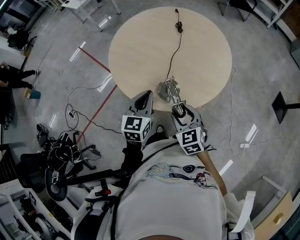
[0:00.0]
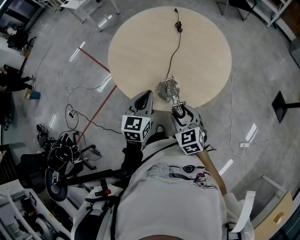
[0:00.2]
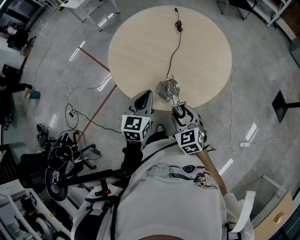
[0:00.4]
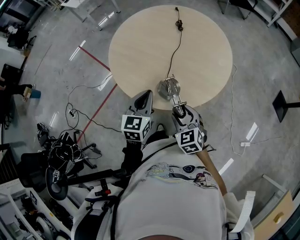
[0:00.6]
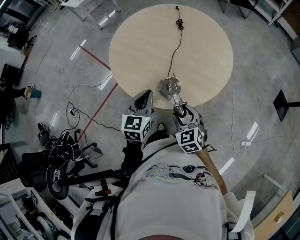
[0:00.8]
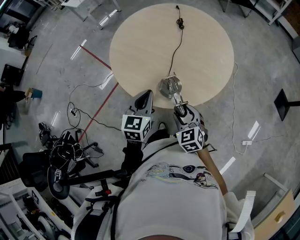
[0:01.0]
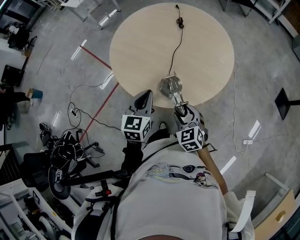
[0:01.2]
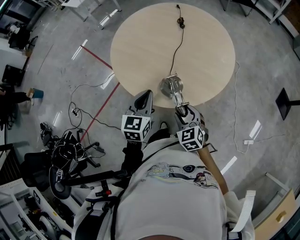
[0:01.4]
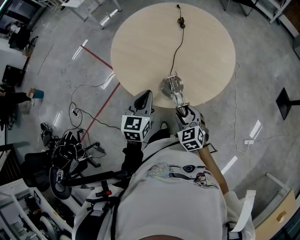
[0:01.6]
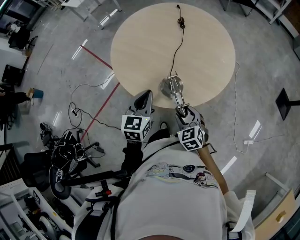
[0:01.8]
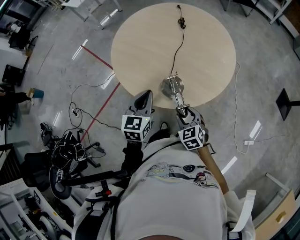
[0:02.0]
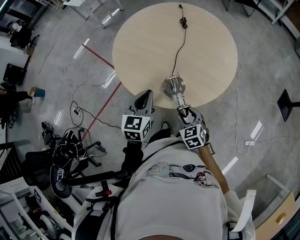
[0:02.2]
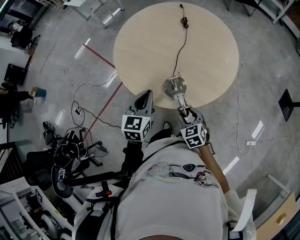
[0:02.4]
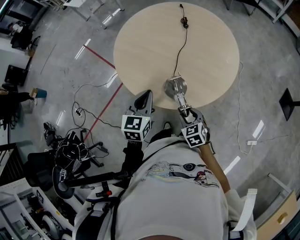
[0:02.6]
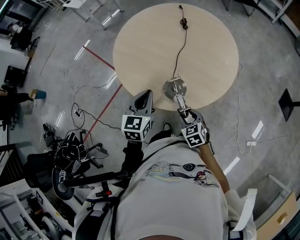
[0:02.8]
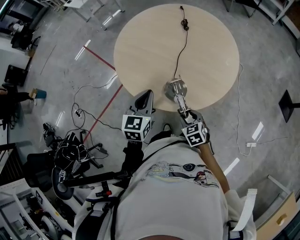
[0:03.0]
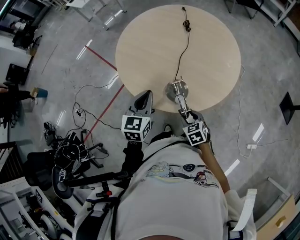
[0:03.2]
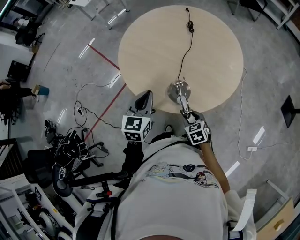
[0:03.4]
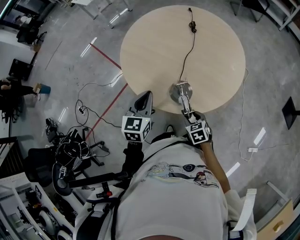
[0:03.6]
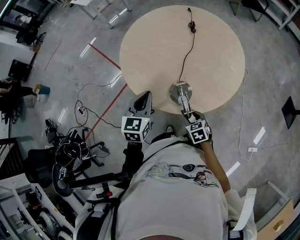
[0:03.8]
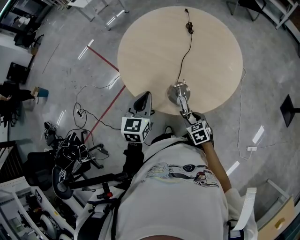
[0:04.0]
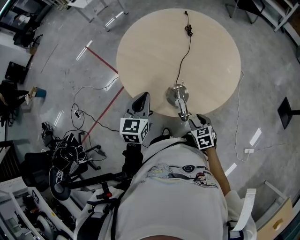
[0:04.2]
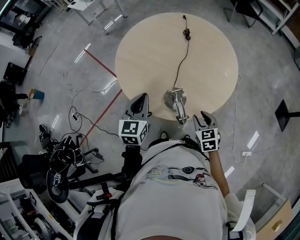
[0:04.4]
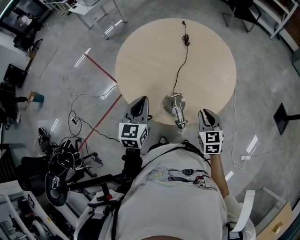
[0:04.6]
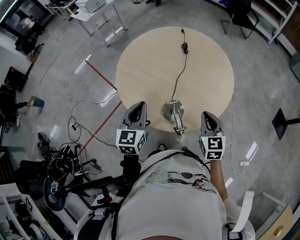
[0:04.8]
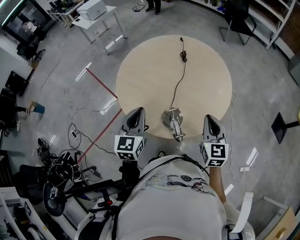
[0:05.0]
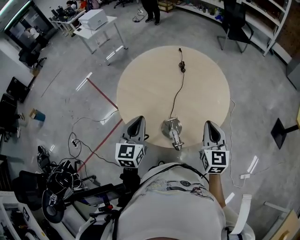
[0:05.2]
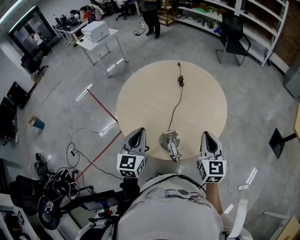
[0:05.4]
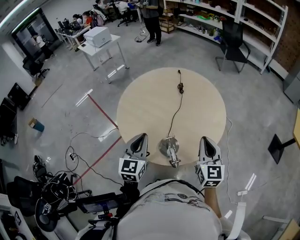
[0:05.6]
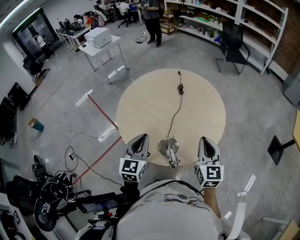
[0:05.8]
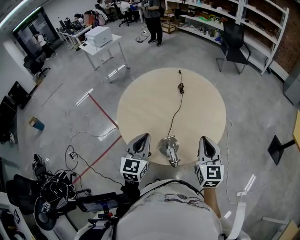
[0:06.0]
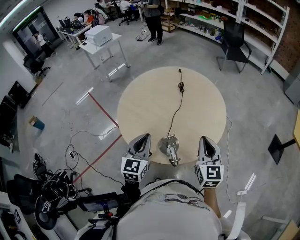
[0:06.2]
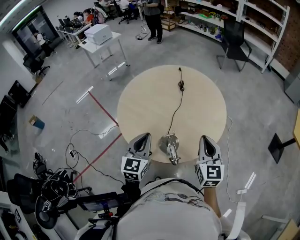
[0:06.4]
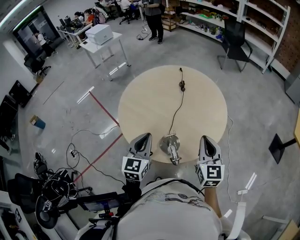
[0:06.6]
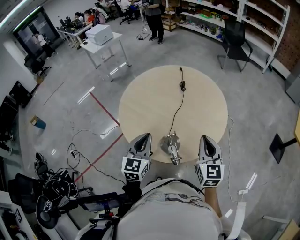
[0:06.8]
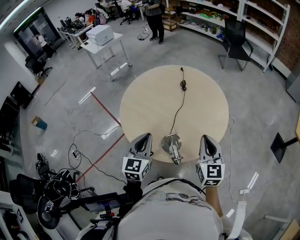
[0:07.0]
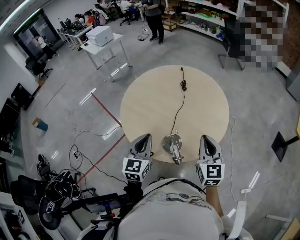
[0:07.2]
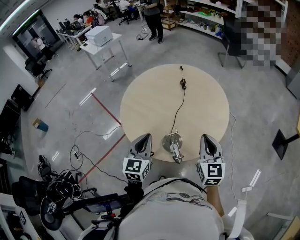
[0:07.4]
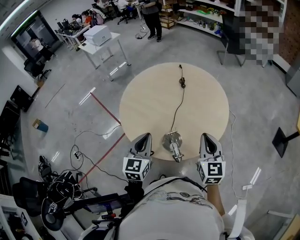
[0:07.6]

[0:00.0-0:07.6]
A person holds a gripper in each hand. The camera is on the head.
0:00.0 to 0:01.6: The right gripper shifts roughly 5 cm downward.
0:01.6 to 0:03.0: The right gripper goes some 5 cm downward.
0:03.0 to 0:04.6: The right gripper shifts about 15 cm upward, to the right and forward, rotates roughly 20 degrees, and closes its fingers.
0:04.6 to 0:06.0: The right gripper goes some 15 cm upward, and swivels some 20 degrees, while the left gripper shifts roughly 5 cm upward.
0:06.0 to 0:07.6: The grippers move only a little.

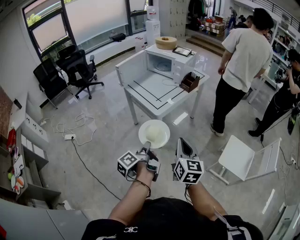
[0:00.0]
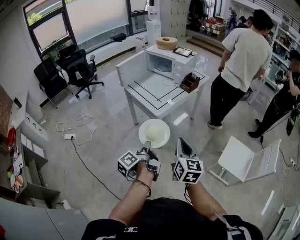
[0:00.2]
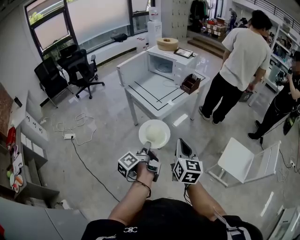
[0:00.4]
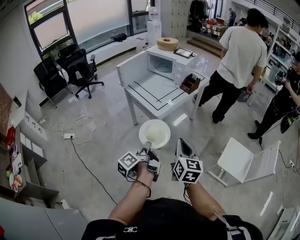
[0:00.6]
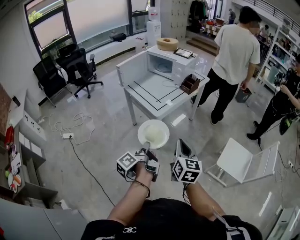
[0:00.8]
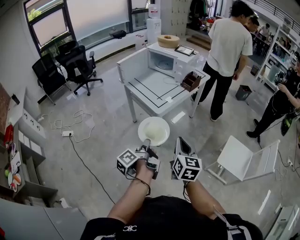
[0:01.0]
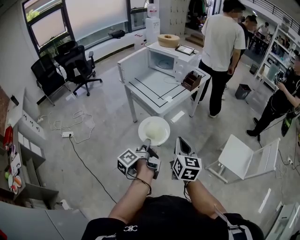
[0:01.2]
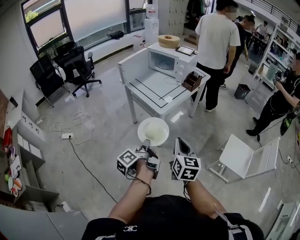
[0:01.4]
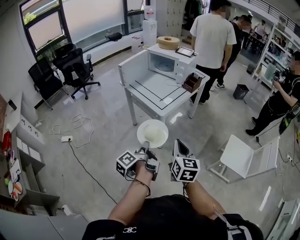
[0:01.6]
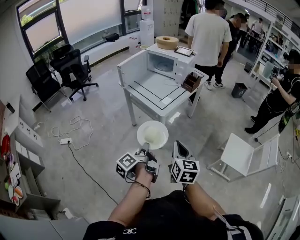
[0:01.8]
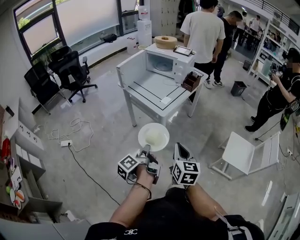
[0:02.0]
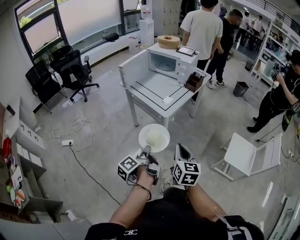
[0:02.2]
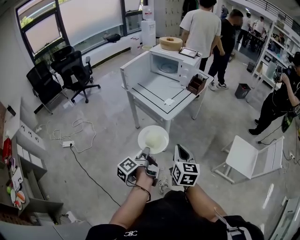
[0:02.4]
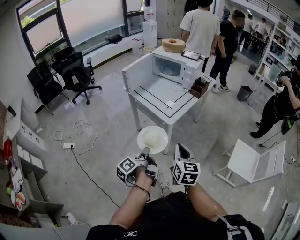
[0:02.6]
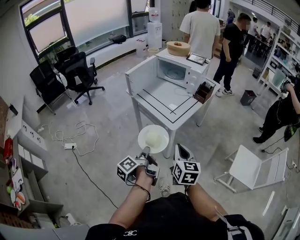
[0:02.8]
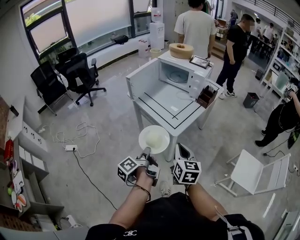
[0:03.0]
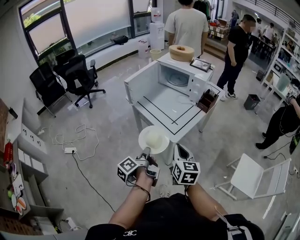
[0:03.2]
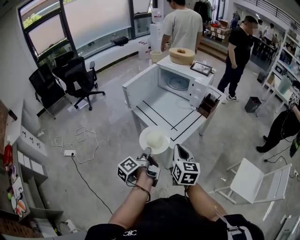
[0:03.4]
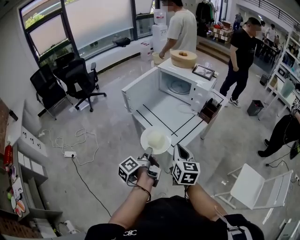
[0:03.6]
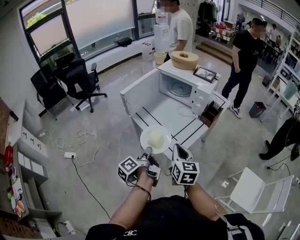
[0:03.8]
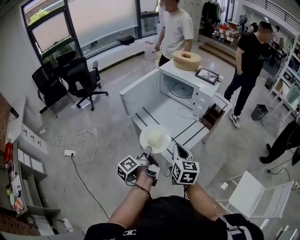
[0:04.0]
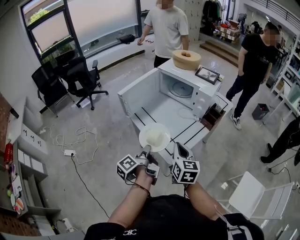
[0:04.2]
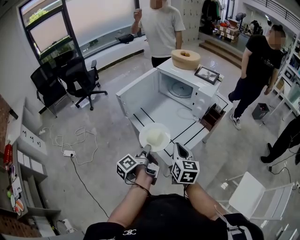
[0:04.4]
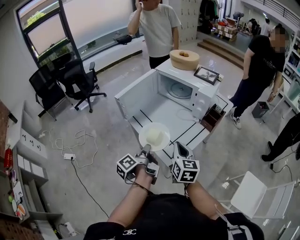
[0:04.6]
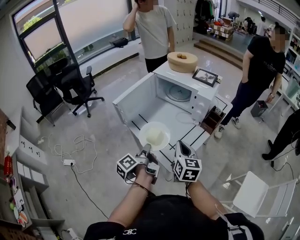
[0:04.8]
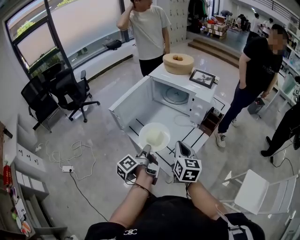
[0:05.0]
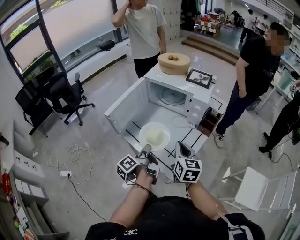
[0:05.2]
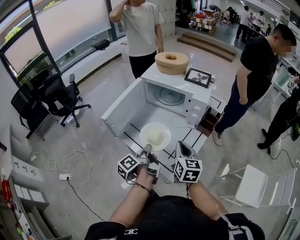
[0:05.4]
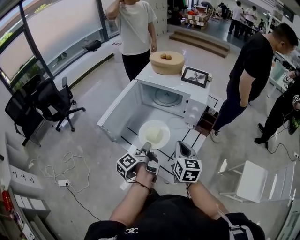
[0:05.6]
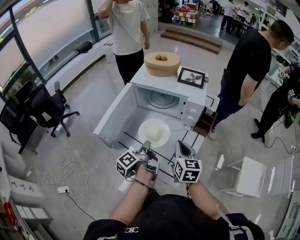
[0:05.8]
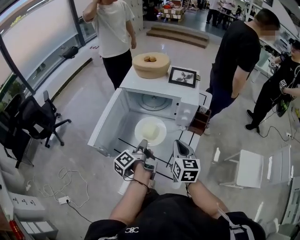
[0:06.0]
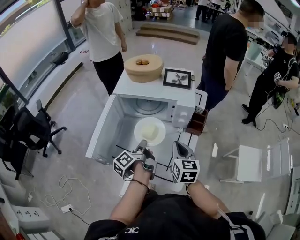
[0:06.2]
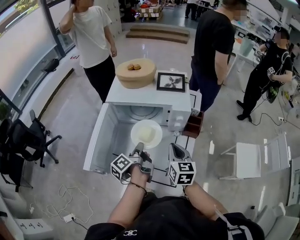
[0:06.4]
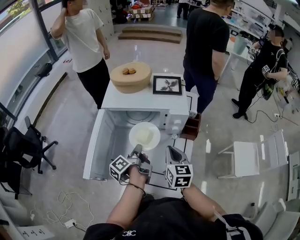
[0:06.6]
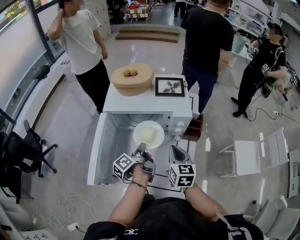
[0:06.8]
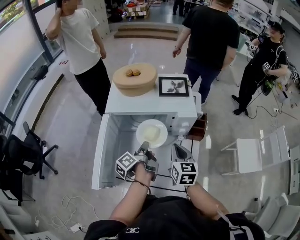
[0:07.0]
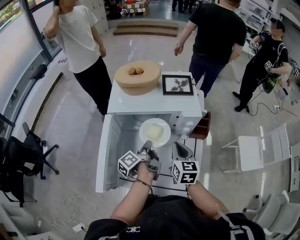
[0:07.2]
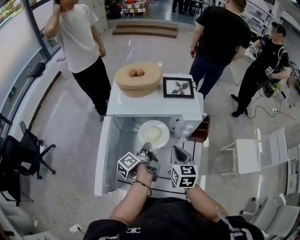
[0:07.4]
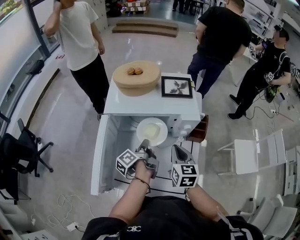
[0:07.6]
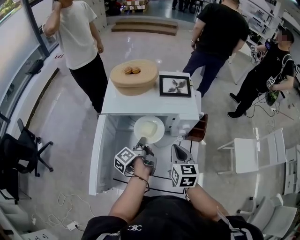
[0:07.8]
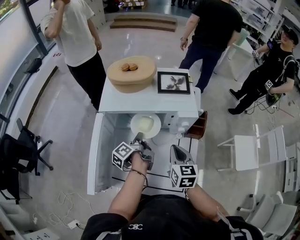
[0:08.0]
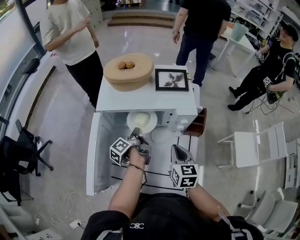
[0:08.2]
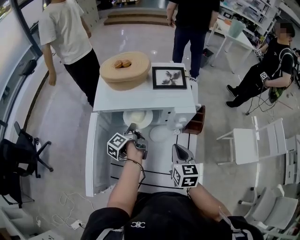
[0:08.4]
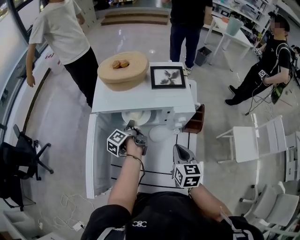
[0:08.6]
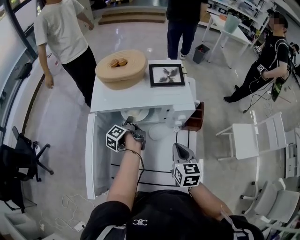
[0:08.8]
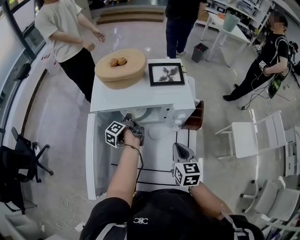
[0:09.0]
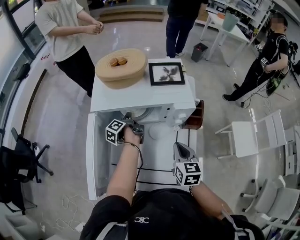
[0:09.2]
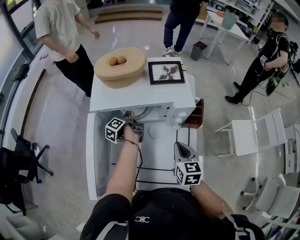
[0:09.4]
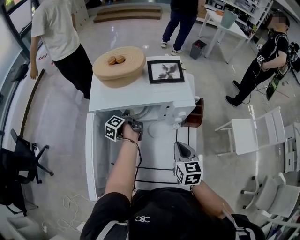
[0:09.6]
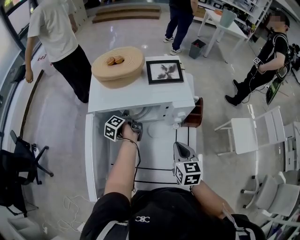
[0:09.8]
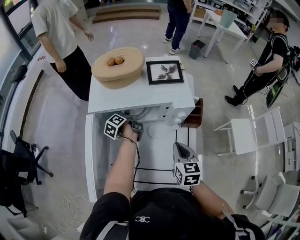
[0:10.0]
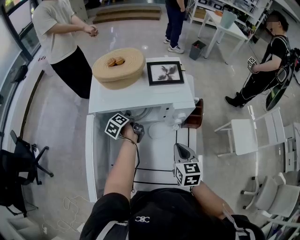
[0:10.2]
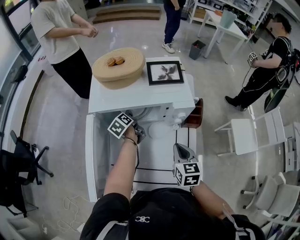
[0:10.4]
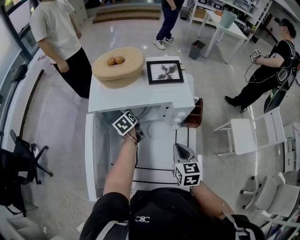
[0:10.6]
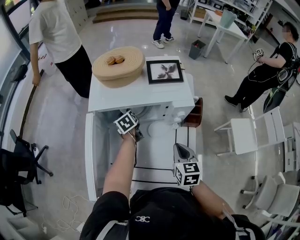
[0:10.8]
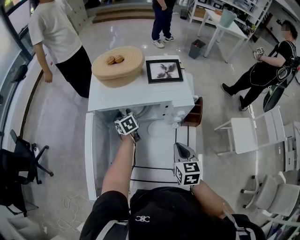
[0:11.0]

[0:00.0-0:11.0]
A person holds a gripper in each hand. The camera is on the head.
0:00.0 to 0:01.6: The right gripper shifts by some 10 cm.
0:01.6 to 0:03.2: The right gripper changes place by roughly 20 cm.
0:03.2 to 0:04.8: The right gripper shifts by some 20 cm.
0:04.8 to 0:06.2: The right gripper changes place by roughly 15 cm, and turns by approximately 20 degrees.
0:06.2 to 0:07.8: The right gripper shifts by about 10 cm.

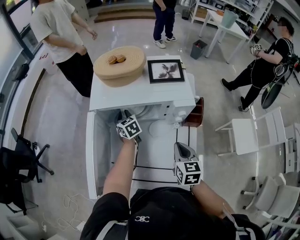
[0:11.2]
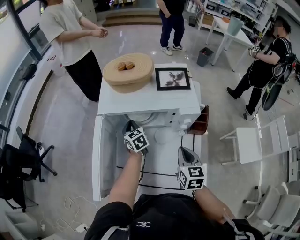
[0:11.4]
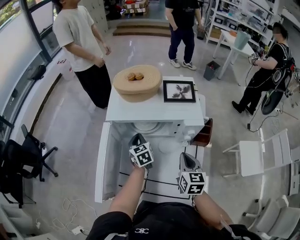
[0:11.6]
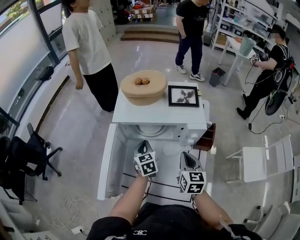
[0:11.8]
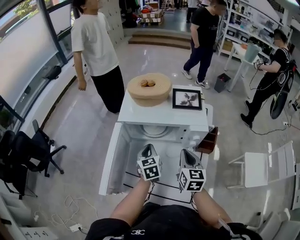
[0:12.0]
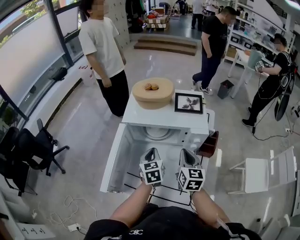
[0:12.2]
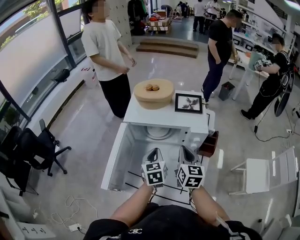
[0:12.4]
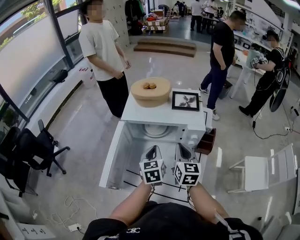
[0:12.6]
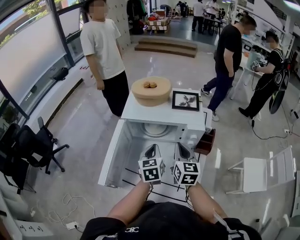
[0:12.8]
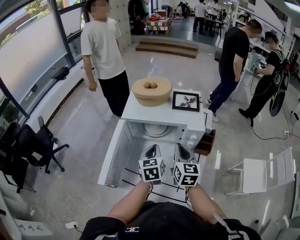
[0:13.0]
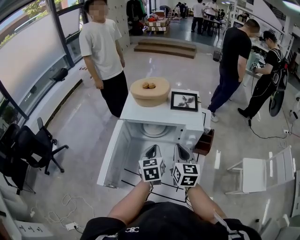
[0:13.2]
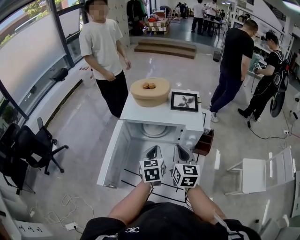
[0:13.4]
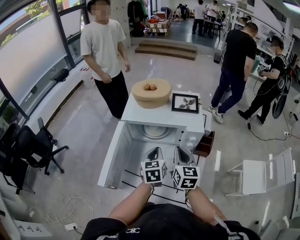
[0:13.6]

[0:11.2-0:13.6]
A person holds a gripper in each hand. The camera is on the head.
0:11.2 to 0:12.4: The right gripper is displaced upward by roughly 10 cm.

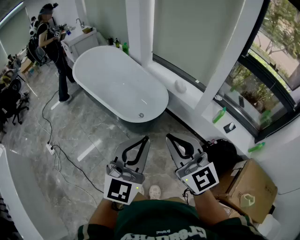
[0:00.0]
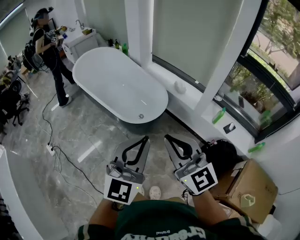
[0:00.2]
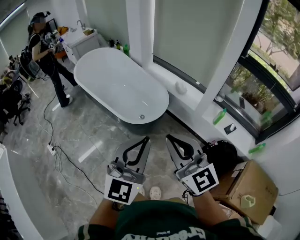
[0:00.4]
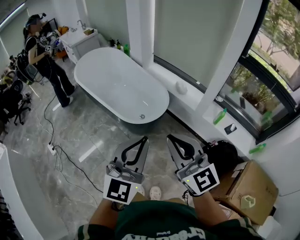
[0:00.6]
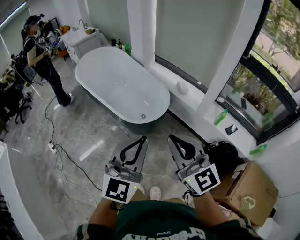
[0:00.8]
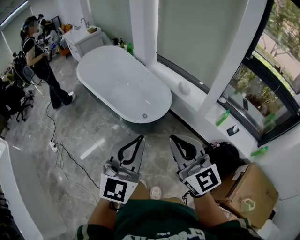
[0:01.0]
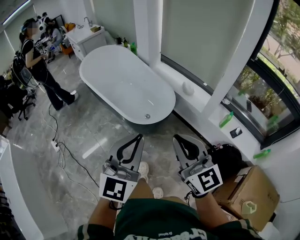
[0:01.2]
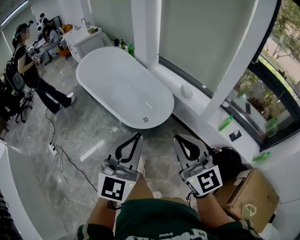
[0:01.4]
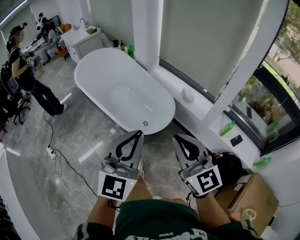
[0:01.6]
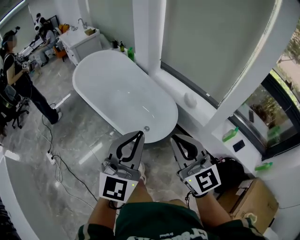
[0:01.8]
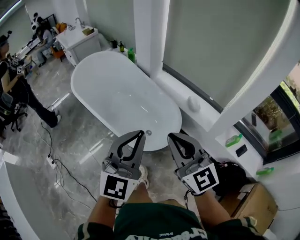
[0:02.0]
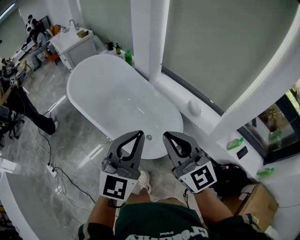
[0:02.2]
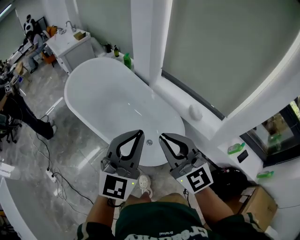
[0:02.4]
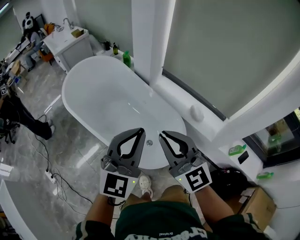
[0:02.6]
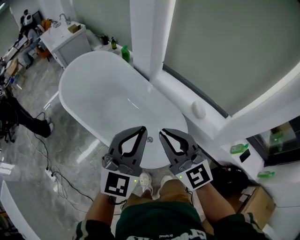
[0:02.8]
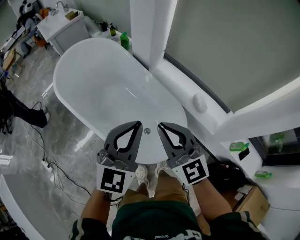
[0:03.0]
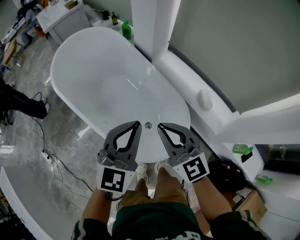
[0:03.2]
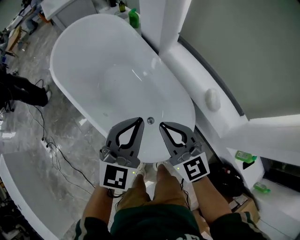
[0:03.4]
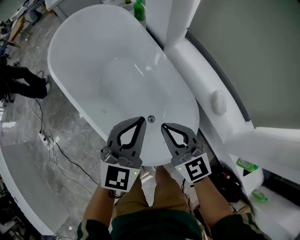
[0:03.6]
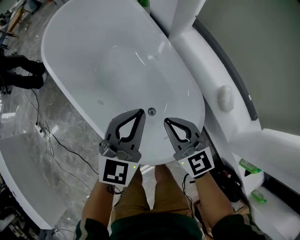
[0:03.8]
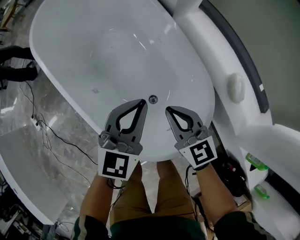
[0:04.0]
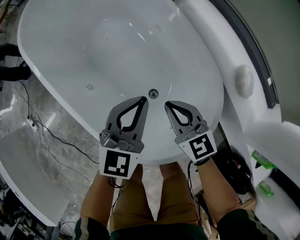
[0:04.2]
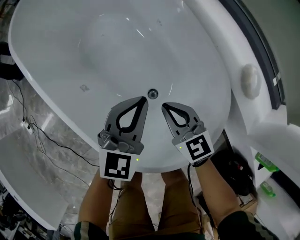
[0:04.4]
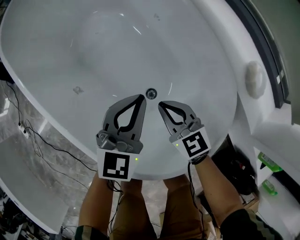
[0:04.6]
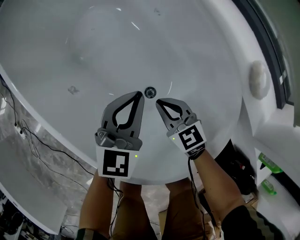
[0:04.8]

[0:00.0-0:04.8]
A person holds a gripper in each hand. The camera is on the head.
0:00.0 to 0:01.6: The grippers both shift forward by roughly 10 cm.
0:01.6 to 0:03.2: Both grippers are carried forward, roughly 40 cm.
0:03.2 to 0:04.8: The grippers both shift downward by roughly 50 cm. The right gripper rotates approximately 30 degrees.
